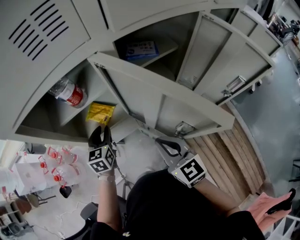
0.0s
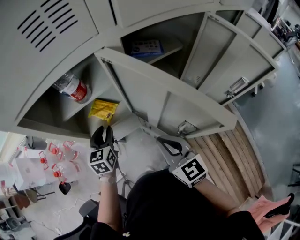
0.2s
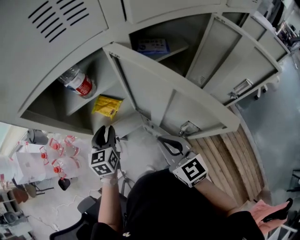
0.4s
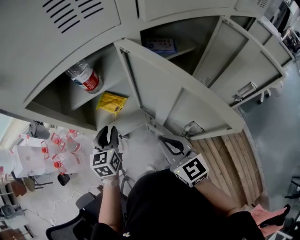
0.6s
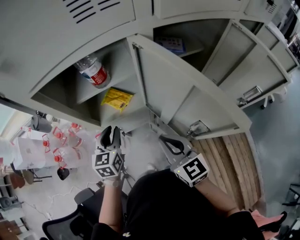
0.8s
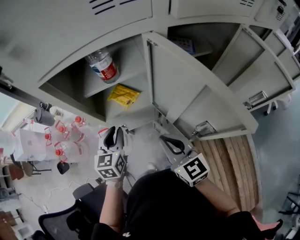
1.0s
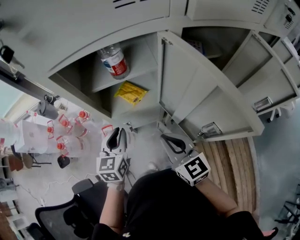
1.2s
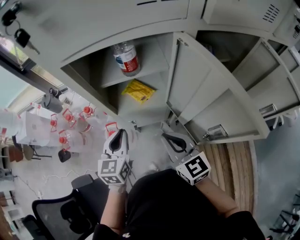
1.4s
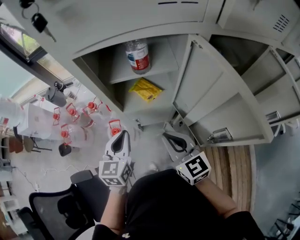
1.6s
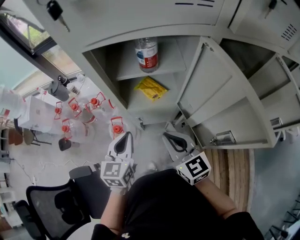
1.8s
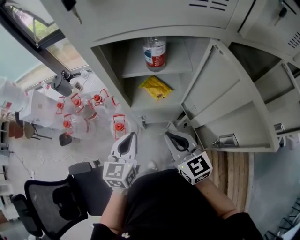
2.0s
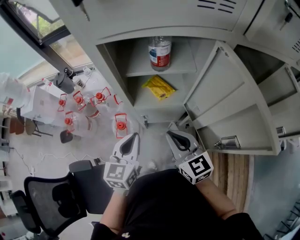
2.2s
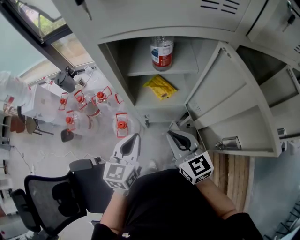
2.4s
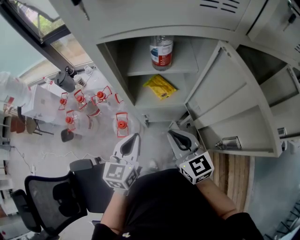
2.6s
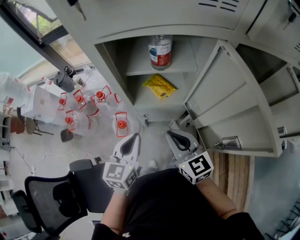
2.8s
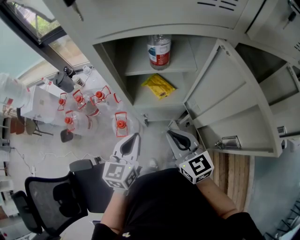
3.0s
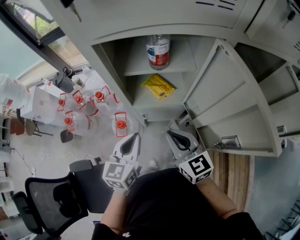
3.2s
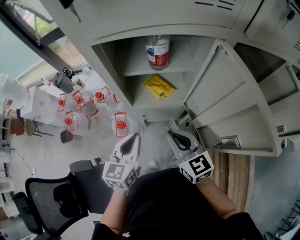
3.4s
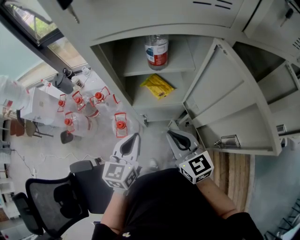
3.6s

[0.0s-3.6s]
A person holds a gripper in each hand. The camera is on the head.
0.0s to 1.8s: The right gripper shifts about 10 cm to the left, and turns by about 20 degrees, while the left gripper is displaced backward, to the left and upward by some 20 cm, and closes its fingers.
1.8s to 3.6s: The grippers make only small movements.

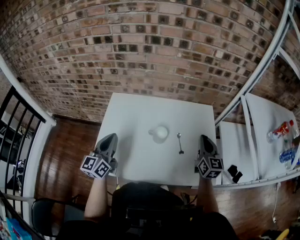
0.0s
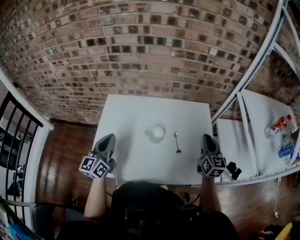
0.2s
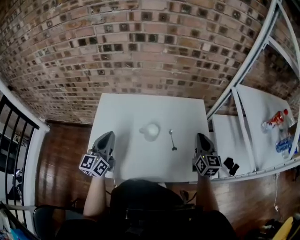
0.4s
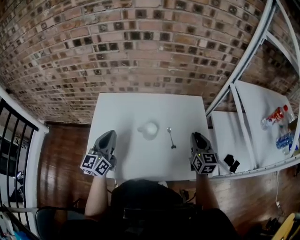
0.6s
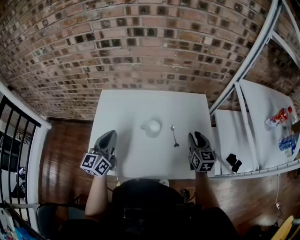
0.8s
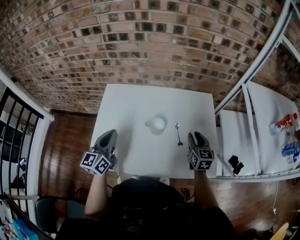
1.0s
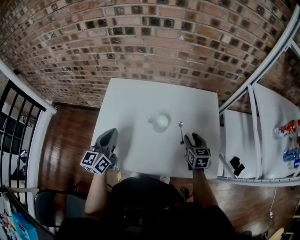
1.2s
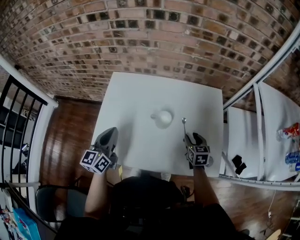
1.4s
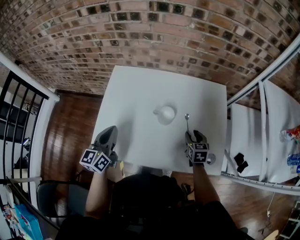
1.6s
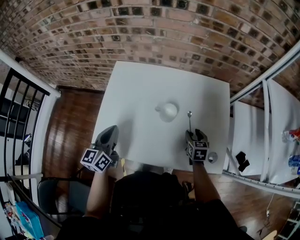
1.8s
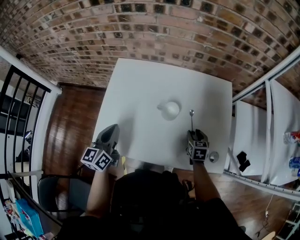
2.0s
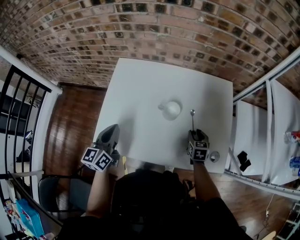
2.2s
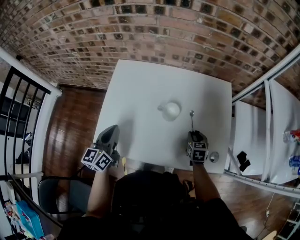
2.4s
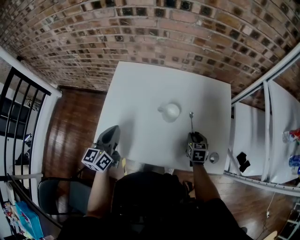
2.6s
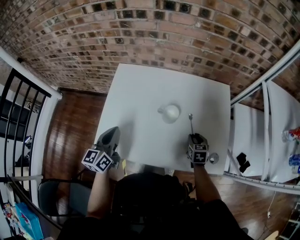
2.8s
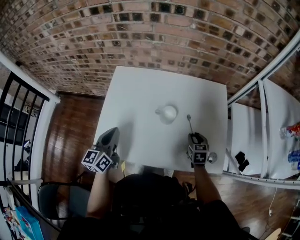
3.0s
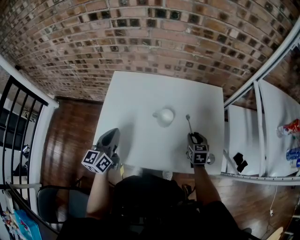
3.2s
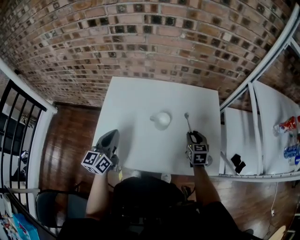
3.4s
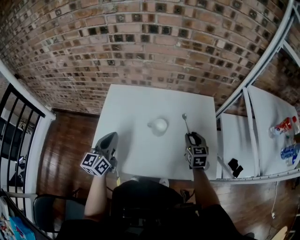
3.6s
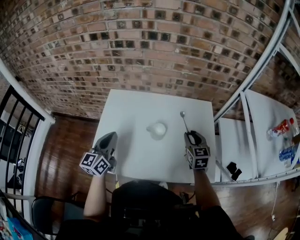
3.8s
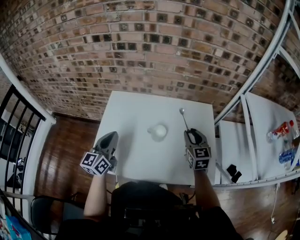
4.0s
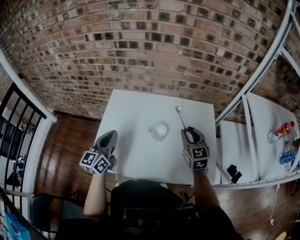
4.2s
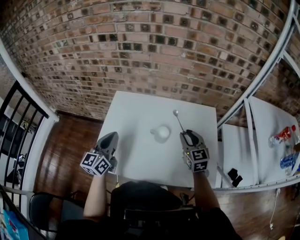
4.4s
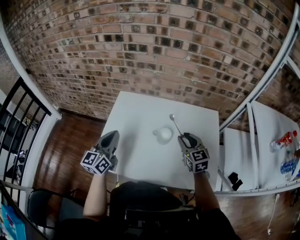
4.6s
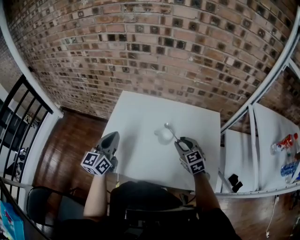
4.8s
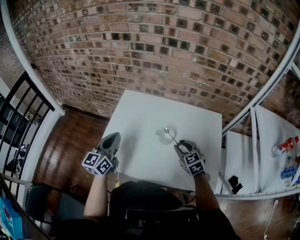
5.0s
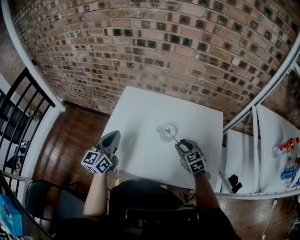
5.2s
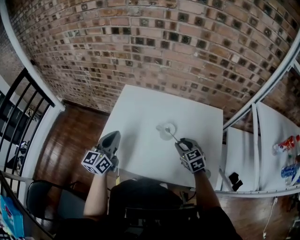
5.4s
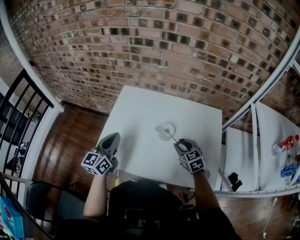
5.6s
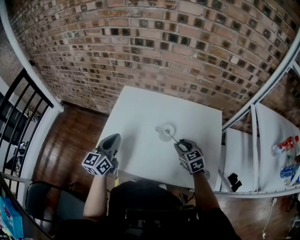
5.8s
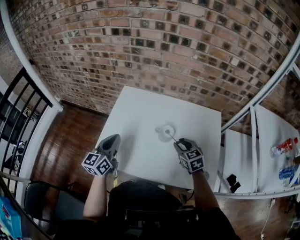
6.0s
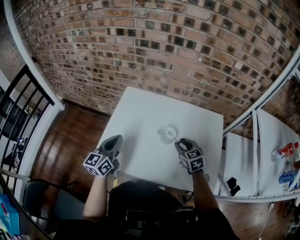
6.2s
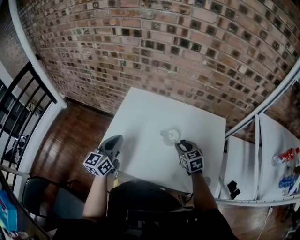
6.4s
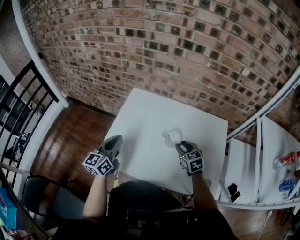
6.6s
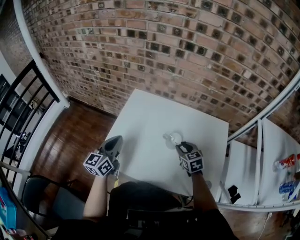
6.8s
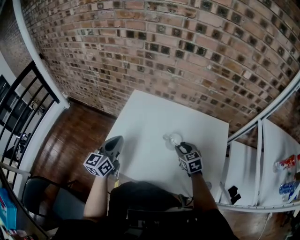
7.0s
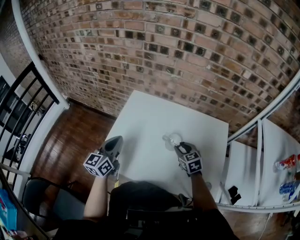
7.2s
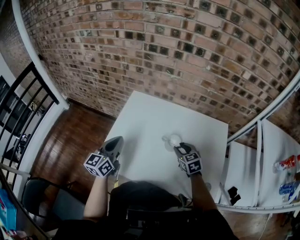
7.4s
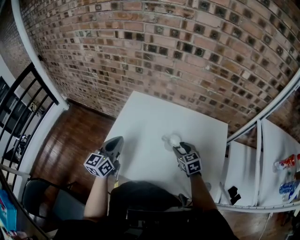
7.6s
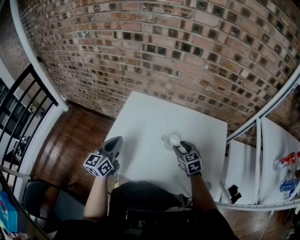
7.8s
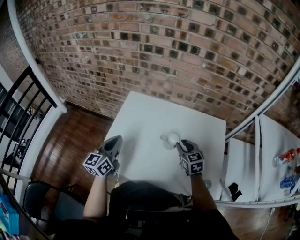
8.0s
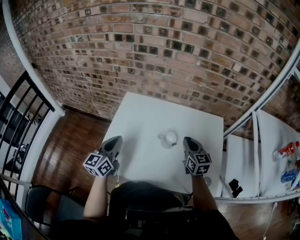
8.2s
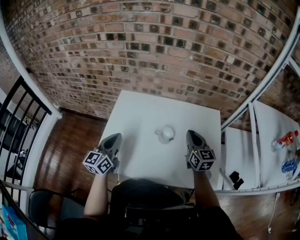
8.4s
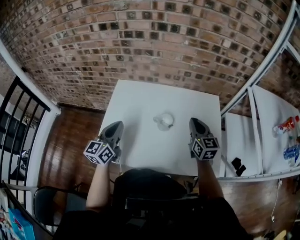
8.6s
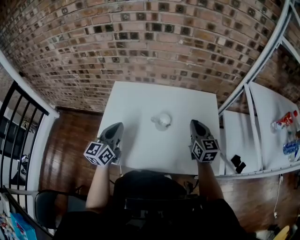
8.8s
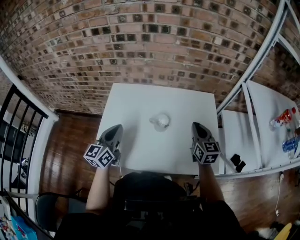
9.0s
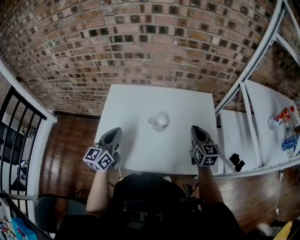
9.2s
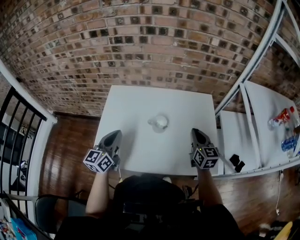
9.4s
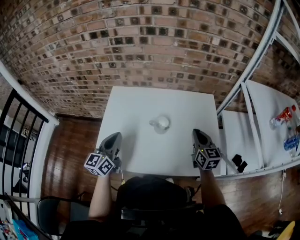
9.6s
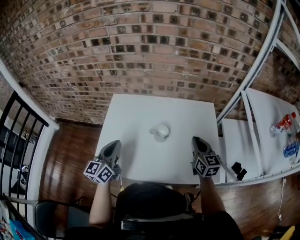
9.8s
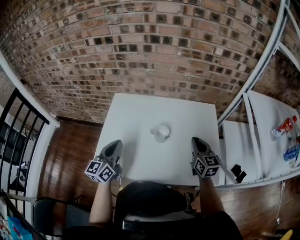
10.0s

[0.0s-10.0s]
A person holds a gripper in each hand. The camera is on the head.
0.0s to 1.4s: The left gripper goes some 5 cm downward. Meanwhile the right gripper moves downward, some 20 cm, tips its fingers downward by some 30 degrees, and opens up.
1.4s to 2.8s: The right gripper shifts roughly 5 cm downward.
2.8s to 4.2s: The right gripper is displaced upward by approximately 20 cm, and tilts its fingers approximately 30 degrees upward. The left gripper heads upward, covering about 5 cm.
4.2s to 5.8s: The right gripper is displaced downward and to the left by roughly 10 cm, and turns by roughly 30 degrees.
5.8s to 7.2s: The right gripper shifts approximately 5 cm forward.
7.2s to 8.6s: The right gripper travels upward and to the right by roughly 15 cm, rotates some 40 degrees, and closes. Meanwhile the left gripper is displaced to the right by about 5 cm.
8.6s to 10.0s: The right gripper moves approximately 5 cm.

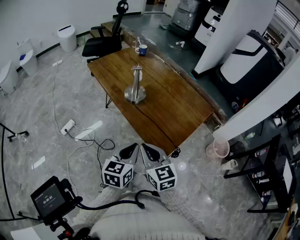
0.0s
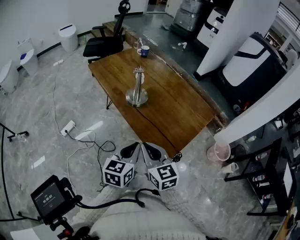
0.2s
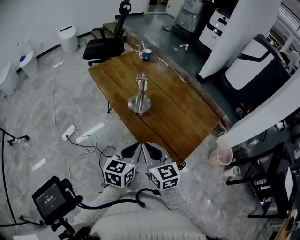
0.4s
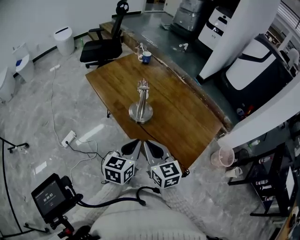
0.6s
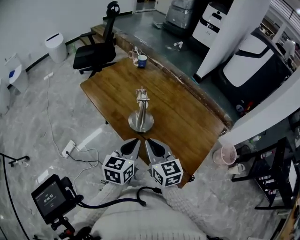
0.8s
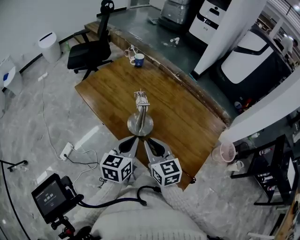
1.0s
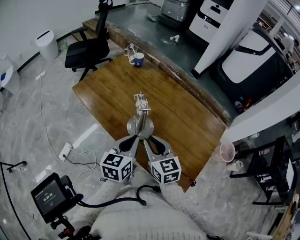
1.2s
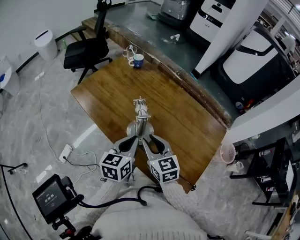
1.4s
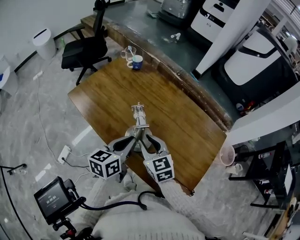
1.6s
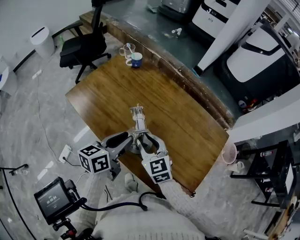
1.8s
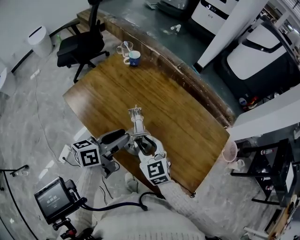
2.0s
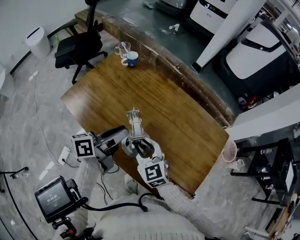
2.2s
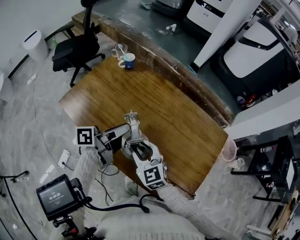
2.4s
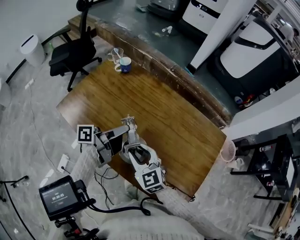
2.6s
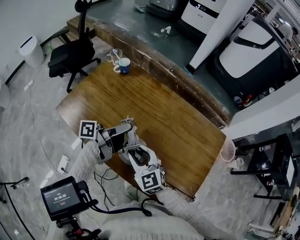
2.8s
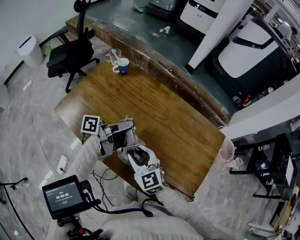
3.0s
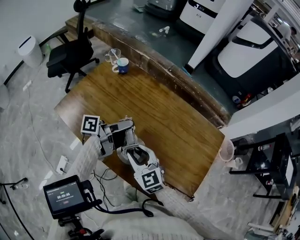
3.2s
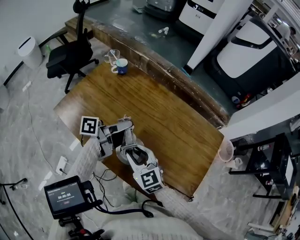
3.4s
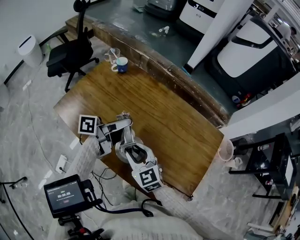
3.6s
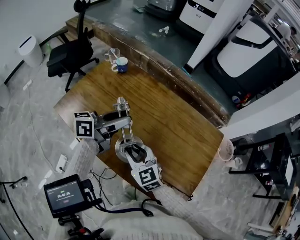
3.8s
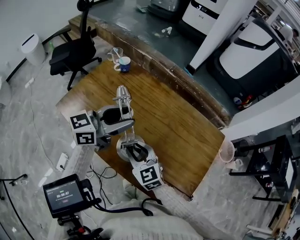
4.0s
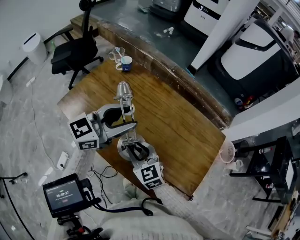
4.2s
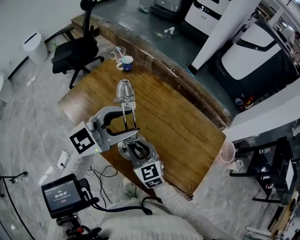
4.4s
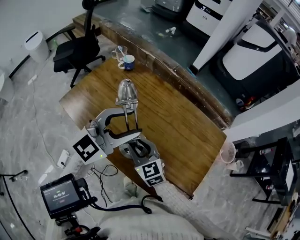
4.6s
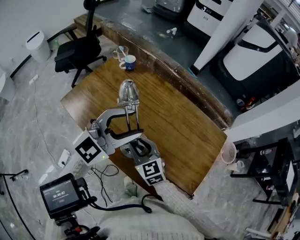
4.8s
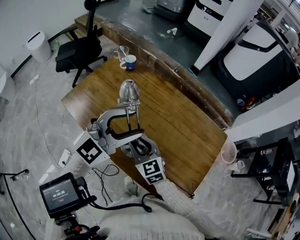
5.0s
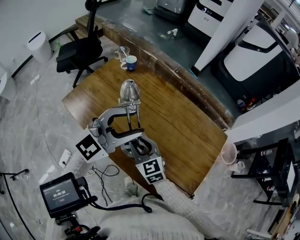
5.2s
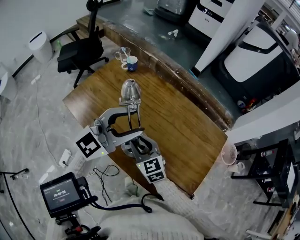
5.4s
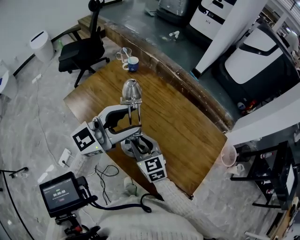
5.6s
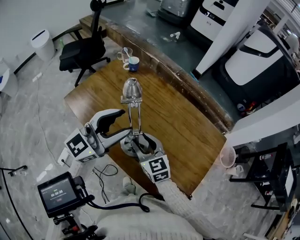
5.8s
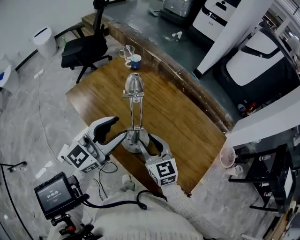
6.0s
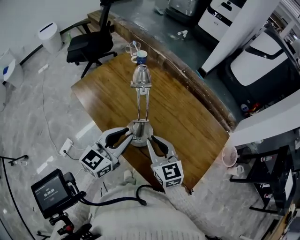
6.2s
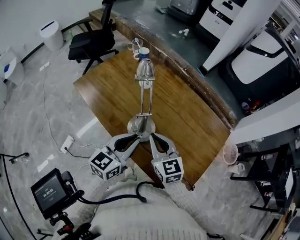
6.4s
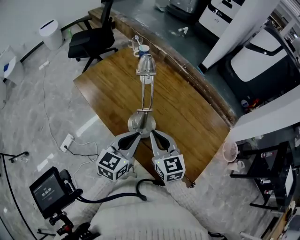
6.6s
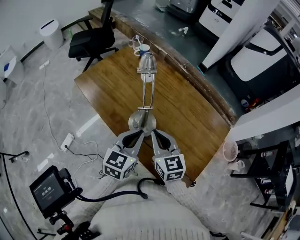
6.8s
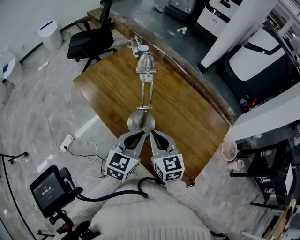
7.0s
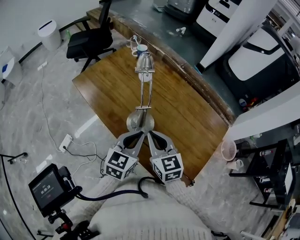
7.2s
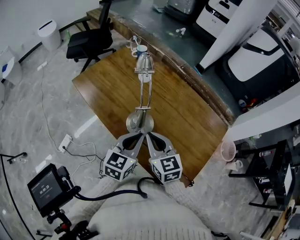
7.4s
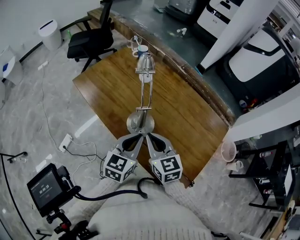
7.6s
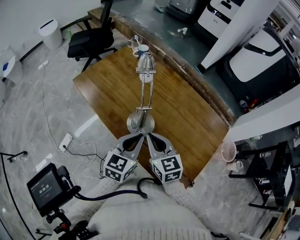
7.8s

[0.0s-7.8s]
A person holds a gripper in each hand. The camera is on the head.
0.0s to 1.6s: The grippers both shift forward by roughly 35 cm. The right gripper opens its fingers. The left gripper rotates some 20 degrees.
1.6s to 3.2s: The left gripper goes about 15 cm forward, swivels approximately 60 degrees, and opens.
3.2s to 4.6s: The left gripper goes approximately 15 cm upward and backward, and twists some 100 degrees clockwise, seen from behind.
4.6s to 6.2s: The left gripper shifts roughly 10 cm backward and downward, turns by approximately 40 degrees, and closes. Meanwhile the right gripper heads upward and to the right, covering roughly 10 cm.
6.2s to 7.8s: The left gripper moves downward, some 5 cm.

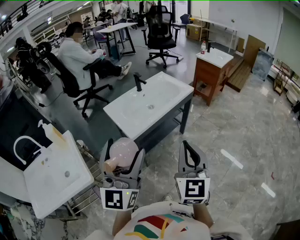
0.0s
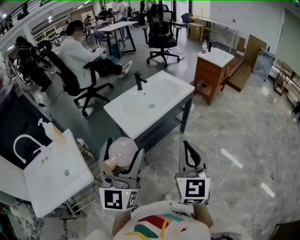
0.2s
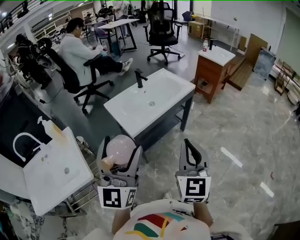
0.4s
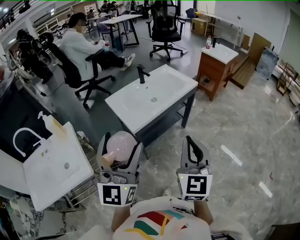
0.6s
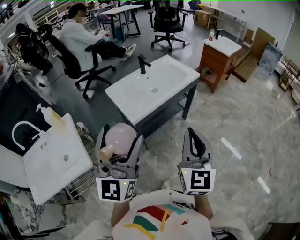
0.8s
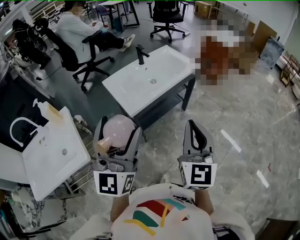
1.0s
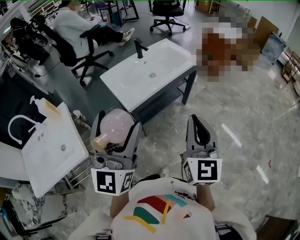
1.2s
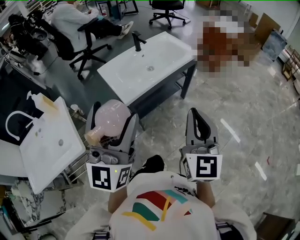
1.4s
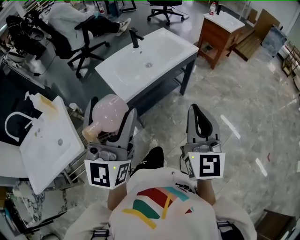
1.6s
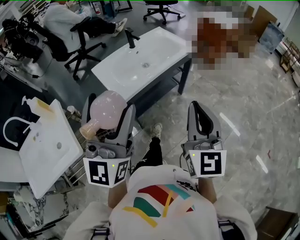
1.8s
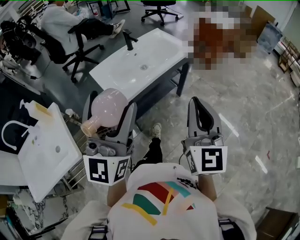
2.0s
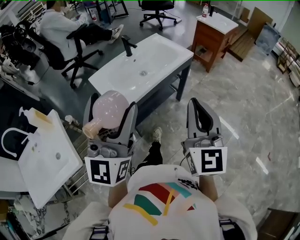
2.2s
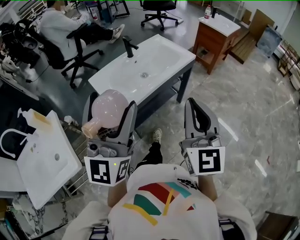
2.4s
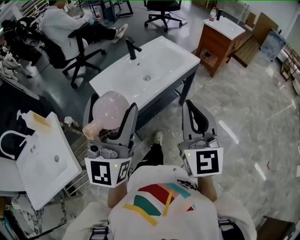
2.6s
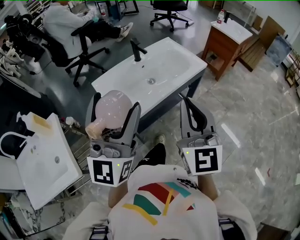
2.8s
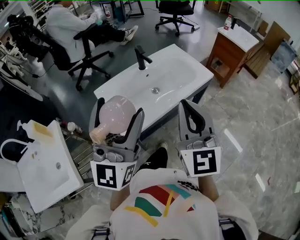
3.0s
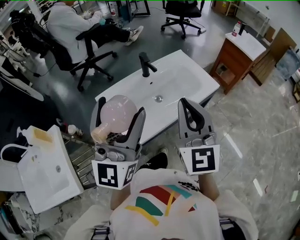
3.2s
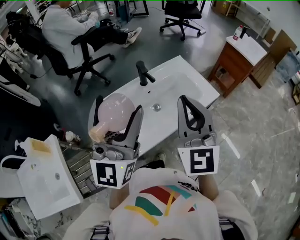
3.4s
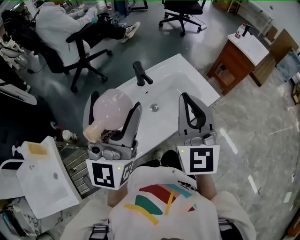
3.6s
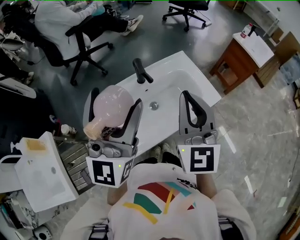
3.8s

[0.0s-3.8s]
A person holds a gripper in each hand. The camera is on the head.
0.0s to 1.2s: The grippers stay close to where they were, moving slightly.
1.2s to 2.6s: The grippers both shift forward by about 10 cm.
2.6s to 3.8s: The grippers both shift forward by approximately 30 cm.
